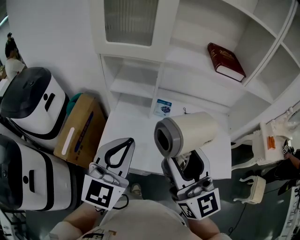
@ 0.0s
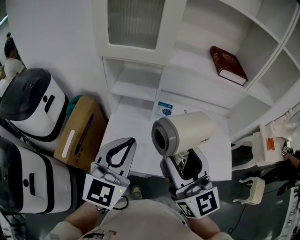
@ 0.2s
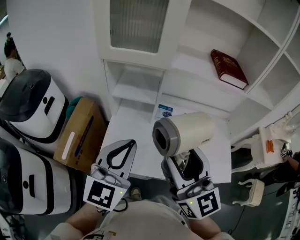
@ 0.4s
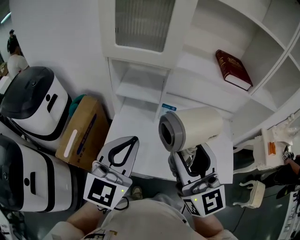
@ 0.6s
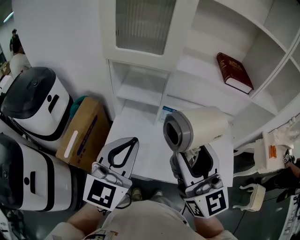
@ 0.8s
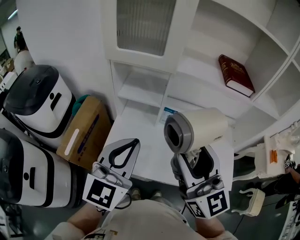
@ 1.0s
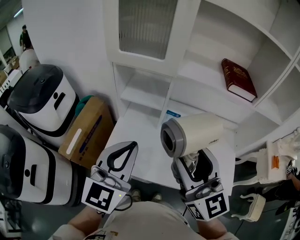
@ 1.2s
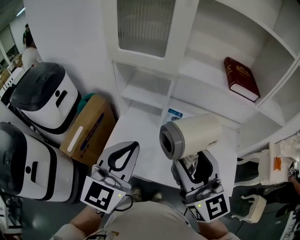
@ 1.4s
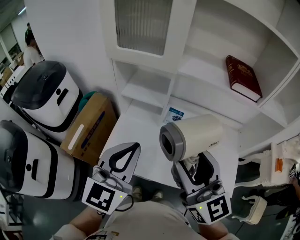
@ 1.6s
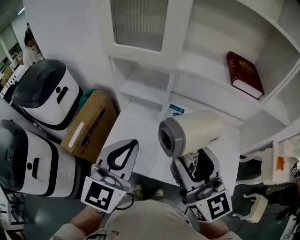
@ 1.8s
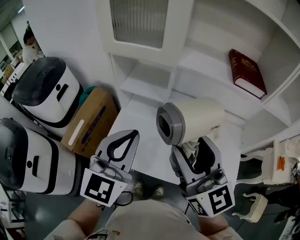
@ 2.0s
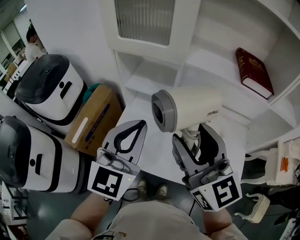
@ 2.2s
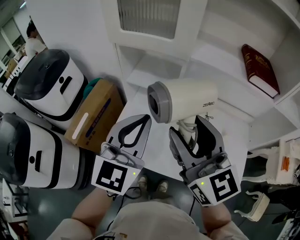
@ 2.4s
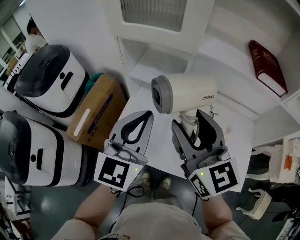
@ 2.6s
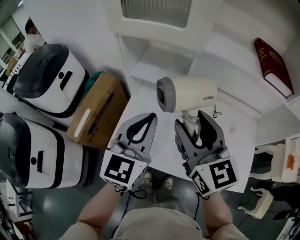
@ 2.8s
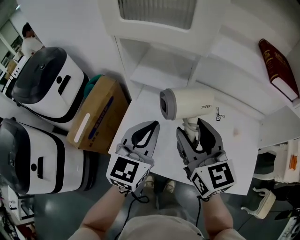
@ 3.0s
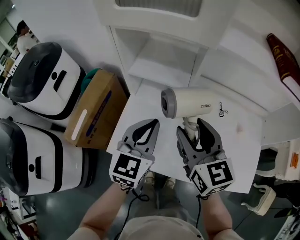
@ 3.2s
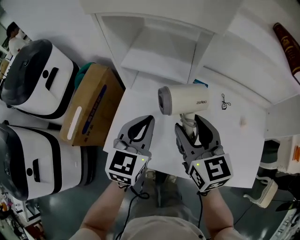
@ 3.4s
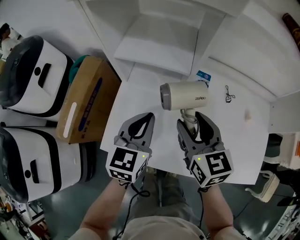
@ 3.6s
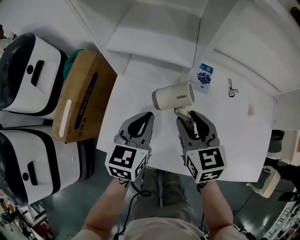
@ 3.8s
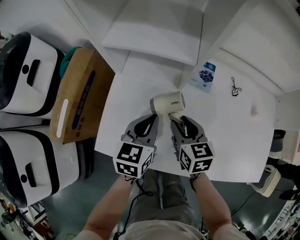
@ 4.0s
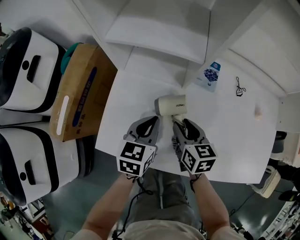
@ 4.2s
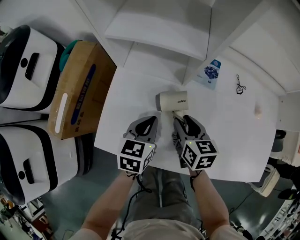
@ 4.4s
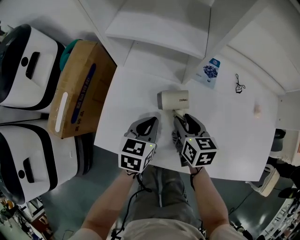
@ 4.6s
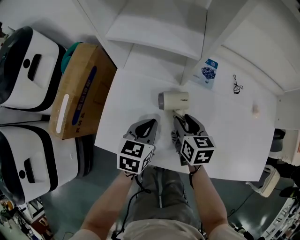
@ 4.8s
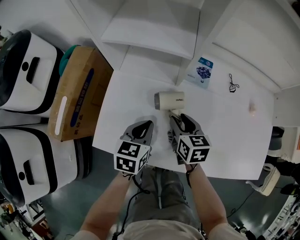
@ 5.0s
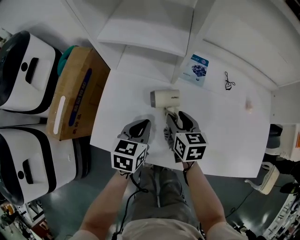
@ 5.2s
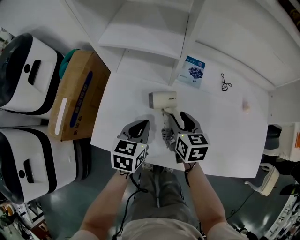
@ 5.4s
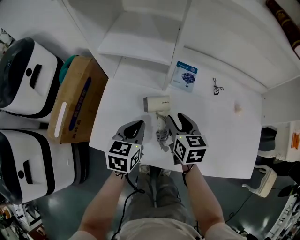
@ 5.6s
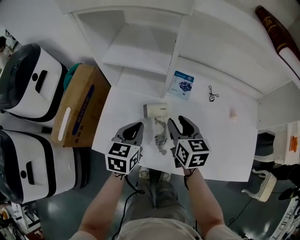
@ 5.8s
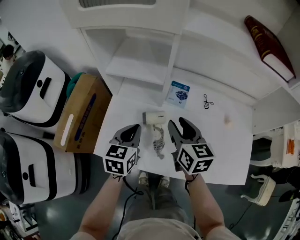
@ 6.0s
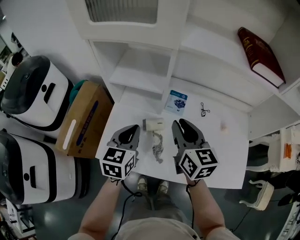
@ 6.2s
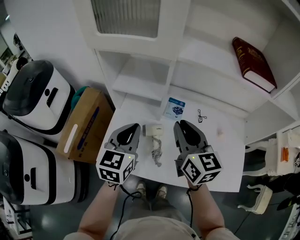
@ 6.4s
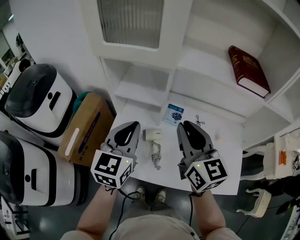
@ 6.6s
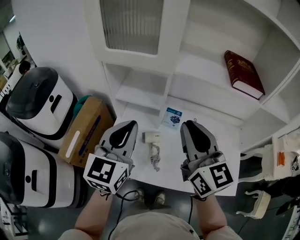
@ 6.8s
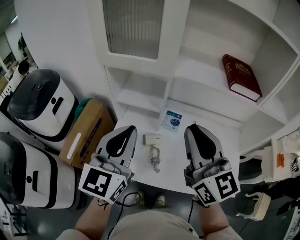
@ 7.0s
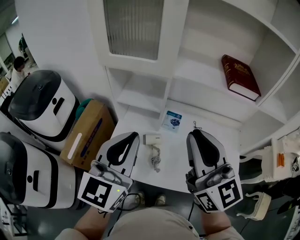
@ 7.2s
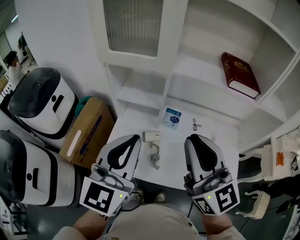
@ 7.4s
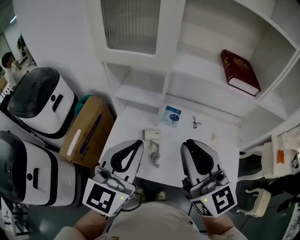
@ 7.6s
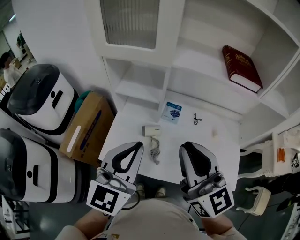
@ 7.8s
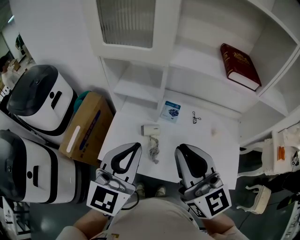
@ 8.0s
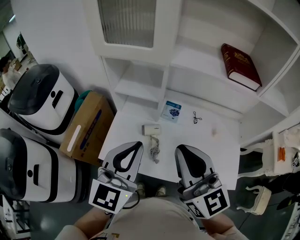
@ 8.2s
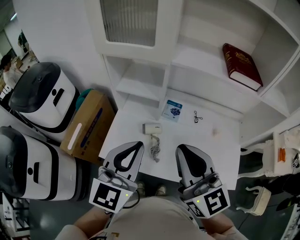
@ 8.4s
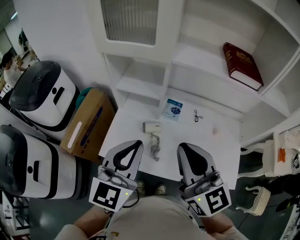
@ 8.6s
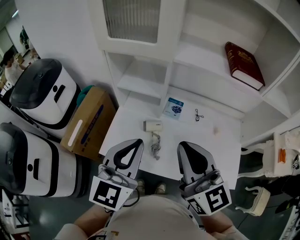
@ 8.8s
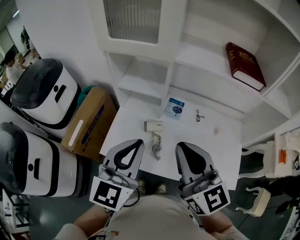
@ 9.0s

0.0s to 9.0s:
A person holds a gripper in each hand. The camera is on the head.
0.0s to 1.6s: The right gripper is displaced forward by roughly 5 cm.
1.6s to 3.0s: Both grippers travel together forward and downward, some 20 cm.
3.0s to 4.4s: Both grippers travel together downward, some 35 cm. The left gripper rotates roughly 30 degrees; the right gripper turns by about 30 degrees.
4.4s to 6.0s: The grippers both shift upward by about 15 cm.
6.0s to 7.6s: The grippers both shift upward and backward by some 35 cm. The left gripper tips its fingers upward by about 30 degrees, while the right gripper changes its angle by roughly 40 degrees, and closes up.
7.6s to 9.0s: The grippers make only small movements.

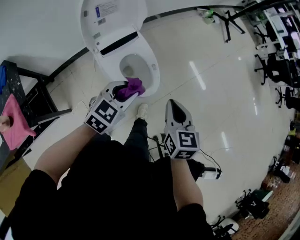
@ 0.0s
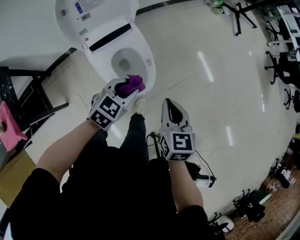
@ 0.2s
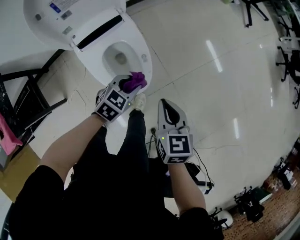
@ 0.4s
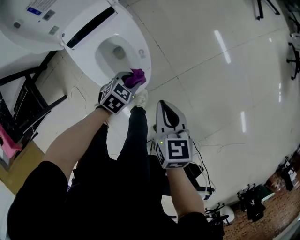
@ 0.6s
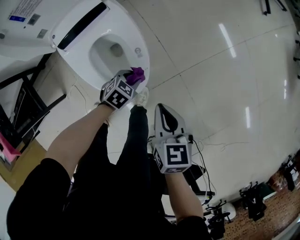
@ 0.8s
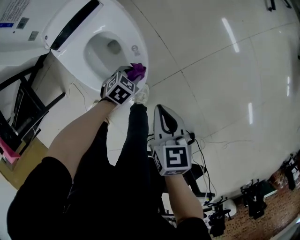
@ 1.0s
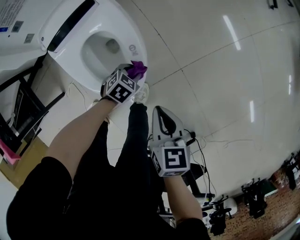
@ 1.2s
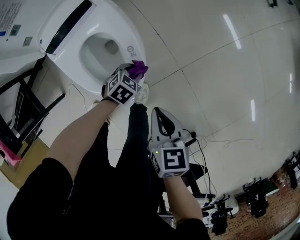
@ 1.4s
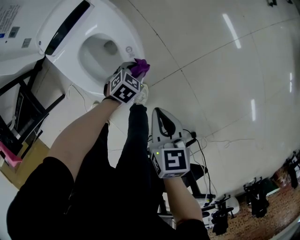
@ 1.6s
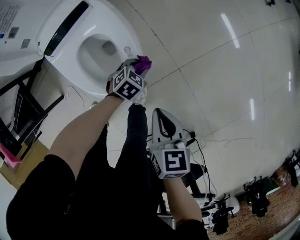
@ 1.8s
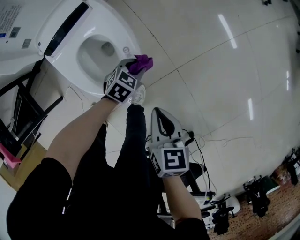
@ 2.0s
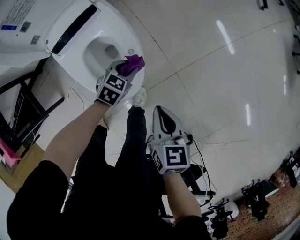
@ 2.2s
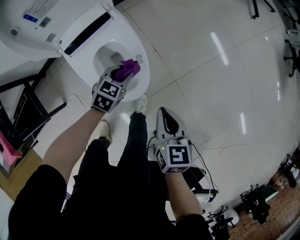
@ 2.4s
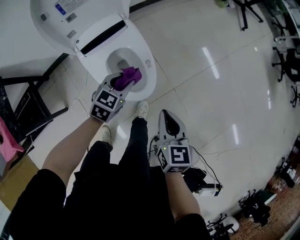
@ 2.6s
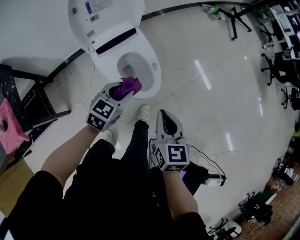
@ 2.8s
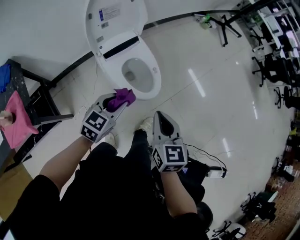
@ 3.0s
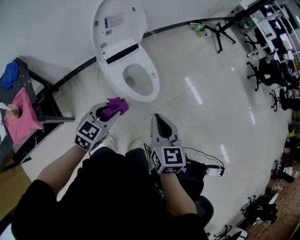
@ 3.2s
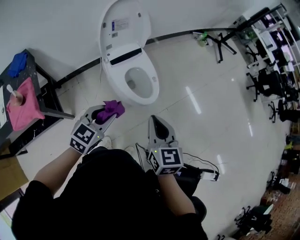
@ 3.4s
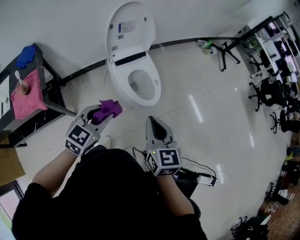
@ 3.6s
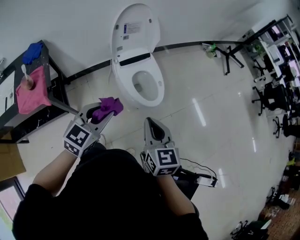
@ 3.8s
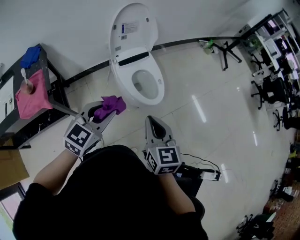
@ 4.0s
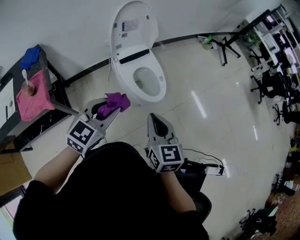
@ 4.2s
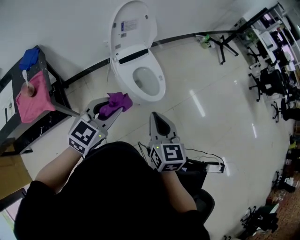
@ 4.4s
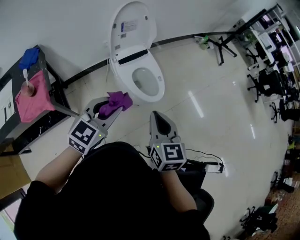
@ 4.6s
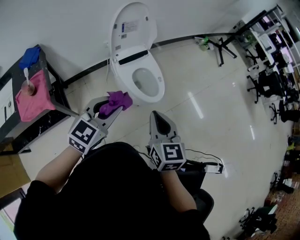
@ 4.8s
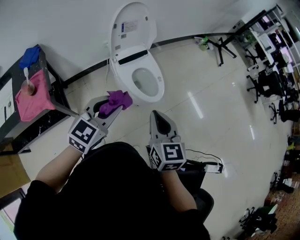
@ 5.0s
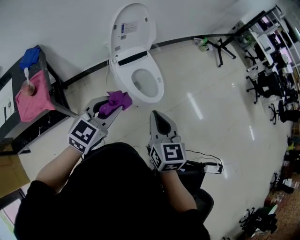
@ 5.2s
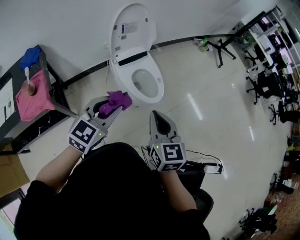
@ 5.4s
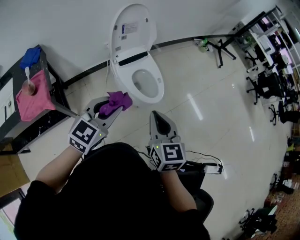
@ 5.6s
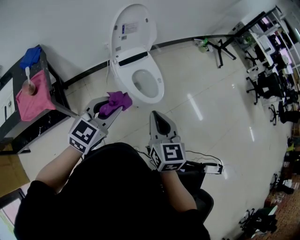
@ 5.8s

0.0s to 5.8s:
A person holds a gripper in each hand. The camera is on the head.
0.0s to 1.4s: The right gripper shifts about 35 cm downward and forward, and swivels roughly 20 degrees; the left gripper shifts about 50 cm downward and forward, and angles its fingers downward, by about 30 degrees.
1.4s to 2.8s: The two grippers go approximately 40 cm upward, backward and to the left. The left gripper points its fingers some 30 degrees further upward. Meanwhile the right gripper rotates approximately 20 degrees.
2.8s to 4.4s: The left gripper heads backward and upward, covering approximately 35 cm. The right gripper goes approximately 30 cm backward, upward and to the left.
4.4s to 5.8s: The grippers stay close to where they were, moving slightly.

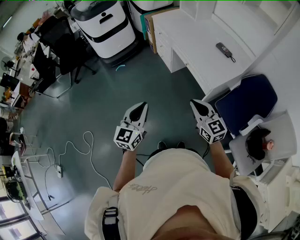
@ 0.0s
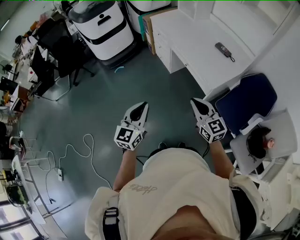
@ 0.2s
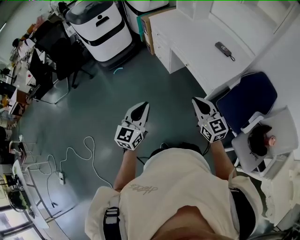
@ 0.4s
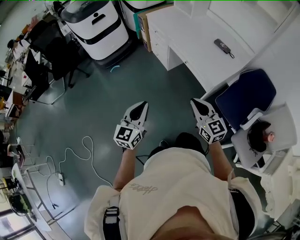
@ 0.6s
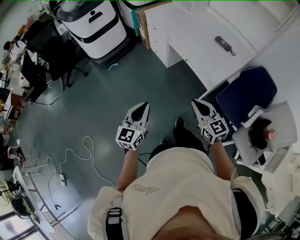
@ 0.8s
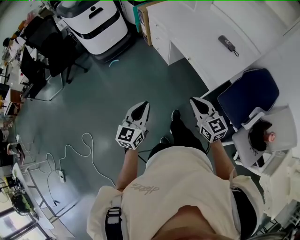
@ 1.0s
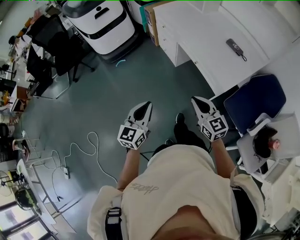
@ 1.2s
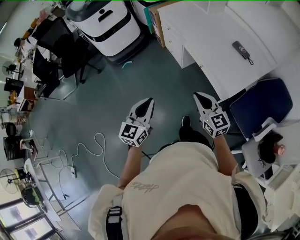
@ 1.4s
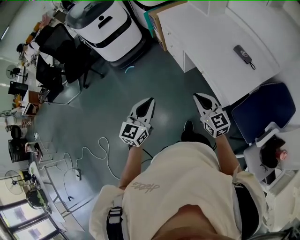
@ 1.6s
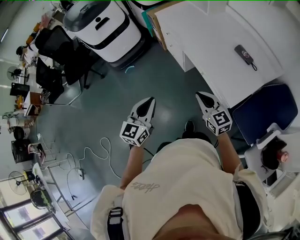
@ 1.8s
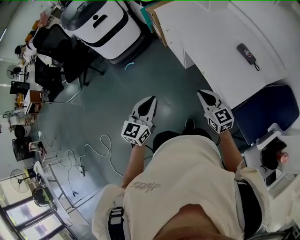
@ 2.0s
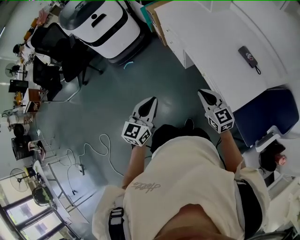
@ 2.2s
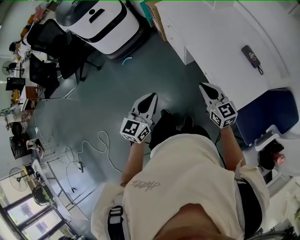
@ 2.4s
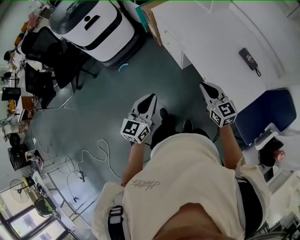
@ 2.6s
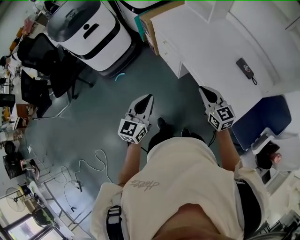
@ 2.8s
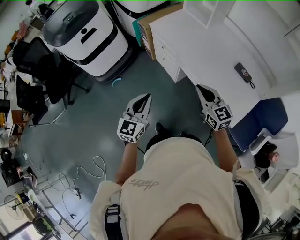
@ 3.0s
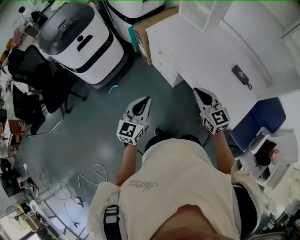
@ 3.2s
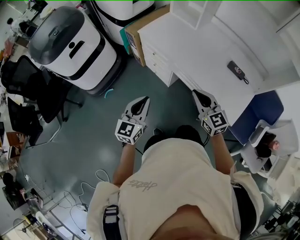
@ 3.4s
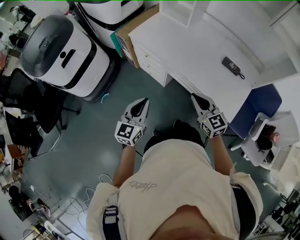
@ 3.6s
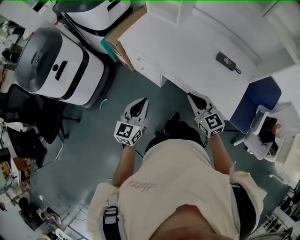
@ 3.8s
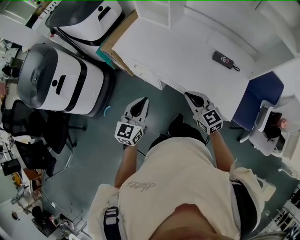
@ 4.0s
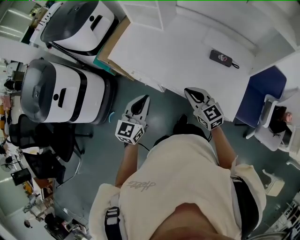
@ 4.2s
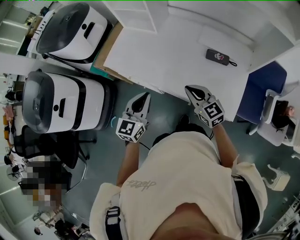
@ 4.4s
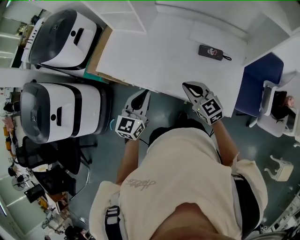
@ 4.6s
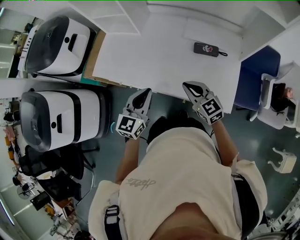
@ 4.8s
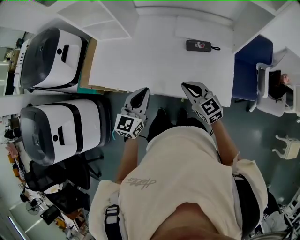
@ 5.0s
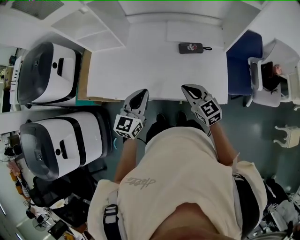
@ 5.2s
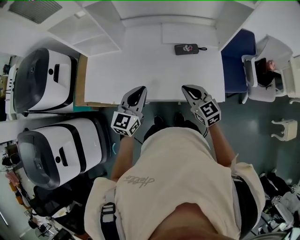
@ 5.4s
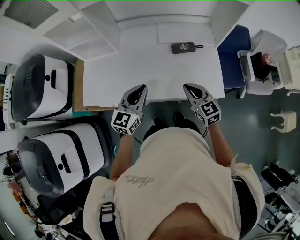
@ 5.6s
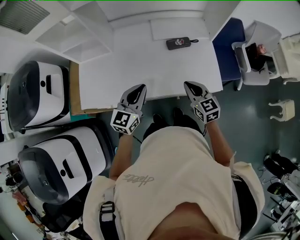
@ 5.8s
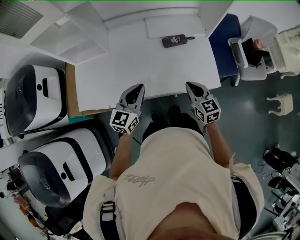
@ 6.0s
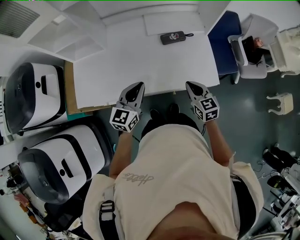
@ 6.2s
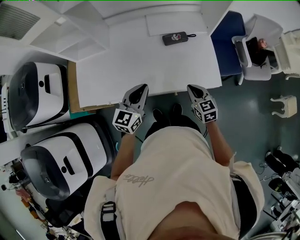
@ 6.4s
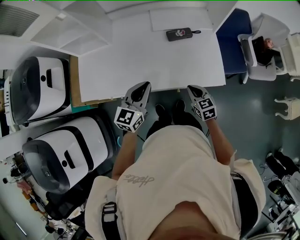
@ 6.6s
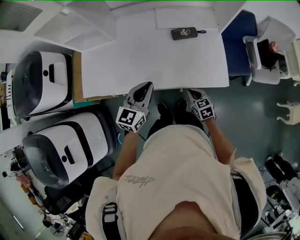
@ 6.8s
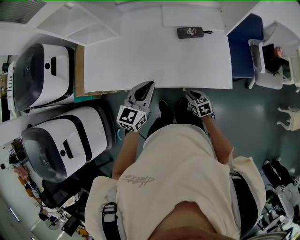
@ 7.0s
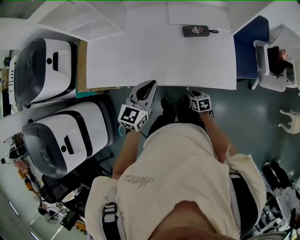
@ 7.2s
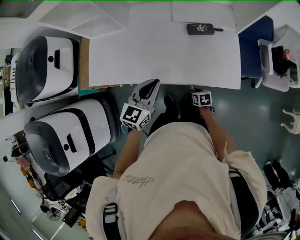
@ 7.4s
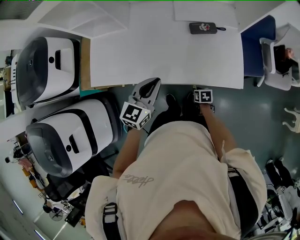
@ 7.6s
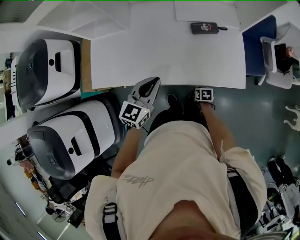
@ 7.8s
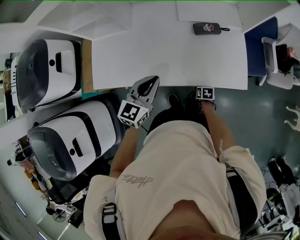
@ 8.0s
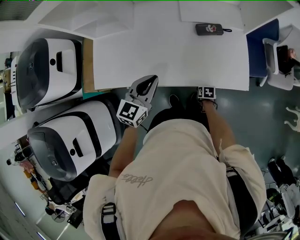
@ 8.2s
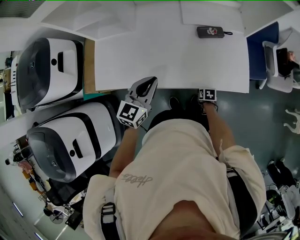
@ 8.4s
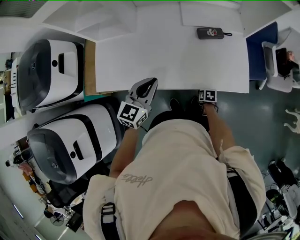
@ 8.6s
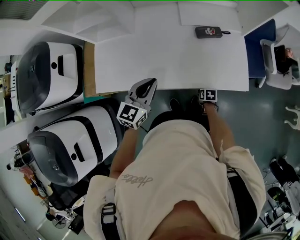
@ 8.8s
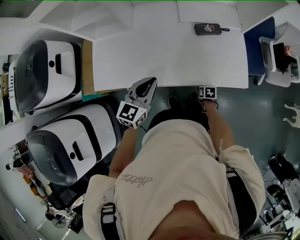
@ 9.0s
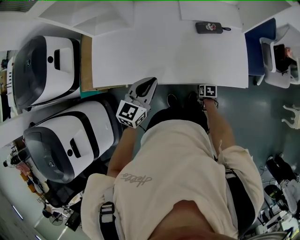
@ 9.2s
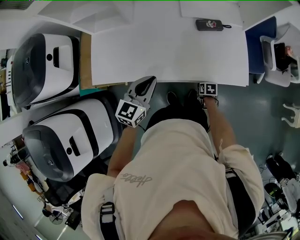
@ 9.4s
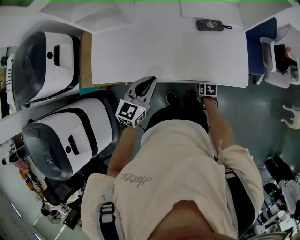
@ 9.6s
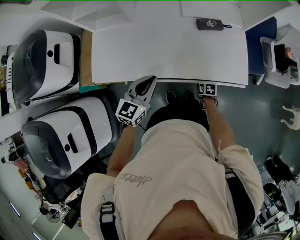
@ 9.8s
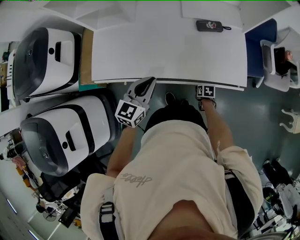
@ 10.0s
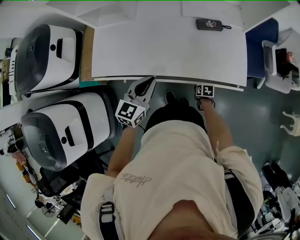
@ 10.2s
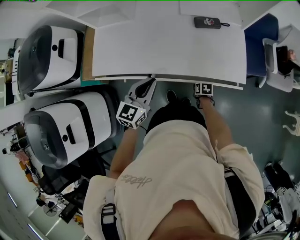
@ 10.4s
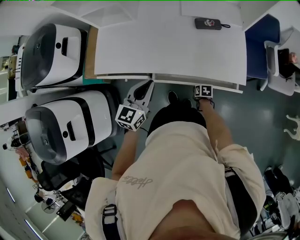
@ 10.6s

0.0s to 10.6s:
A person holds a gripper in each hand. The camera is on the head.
0.0s to 1.6s: Both grippers travel together forward, approximately 20 cm.
1.6s to 3.0s: The two grippers go some 25 cm forward.
3.0s to 4.6s: The left gripper moves about 35 cm, and rotates some 30 degrees; the right gripper moves about 20 cm, and changes its angle by roughly 20 degrees.
4.6s to 6.0s: The right gripper changes place by approximately 5 cm, and changes its angle by about 40 degrees; the left gripper moves roughly 5 cm, and rotates about 30 degrees.
6.0s to 7.6s: The right gripper travels downward by some 30 cm, angles its fingers downward, by about 40 degrees, and opens up.
7.6s to 9.0s: The left gripper goes about 5 cm to the left.
9.0s to 10.6s: The left gripper heads backward, covering some 10 cm. Meanwhile the right gripper goes some 5 cm backward.
